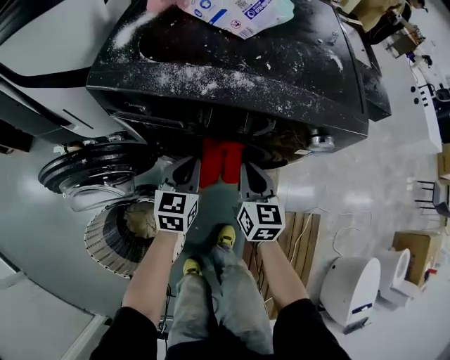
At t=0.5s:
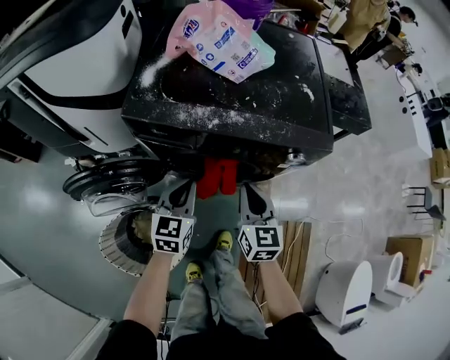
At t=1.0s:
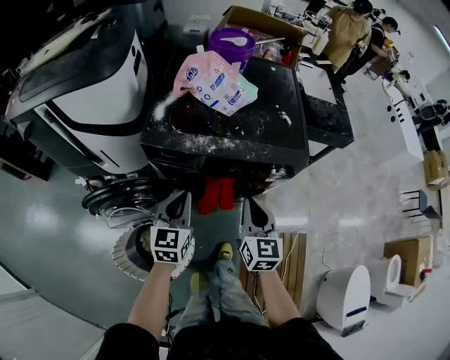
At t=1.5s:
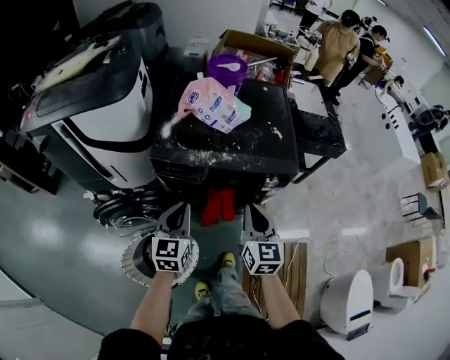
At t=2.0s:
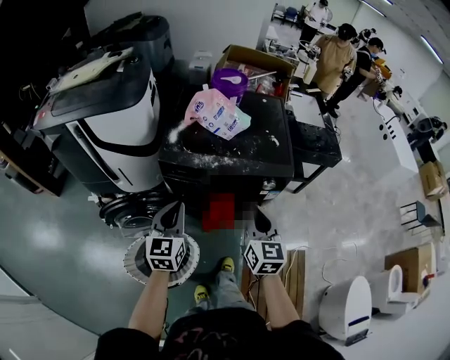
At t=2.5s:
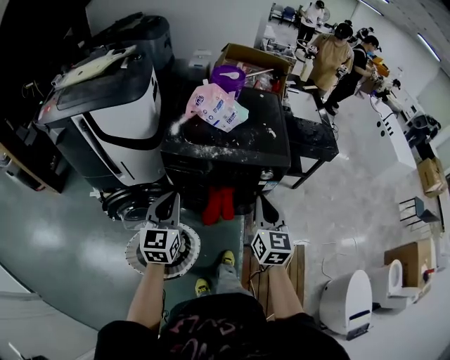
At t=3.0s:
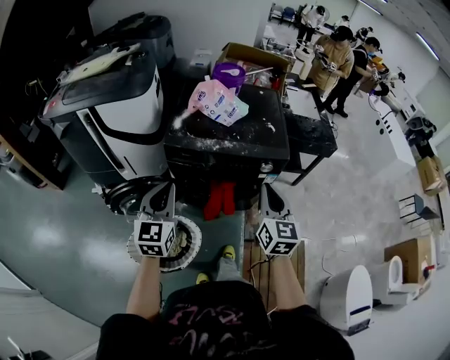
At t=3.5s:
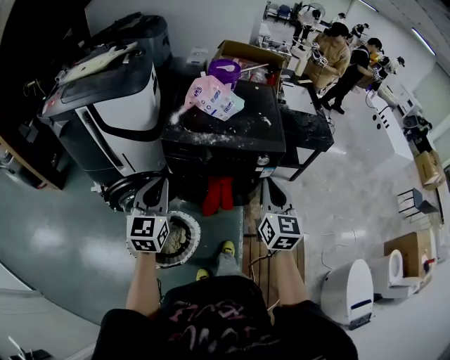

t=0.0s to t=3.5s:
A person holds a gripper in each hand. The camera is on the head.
t=0.0s to t=2.0s: The grippers both shift upward by some 35 cm.
t=2.0s to t=3.5s: Both grippers travel together upward and backward, about 10 cm.

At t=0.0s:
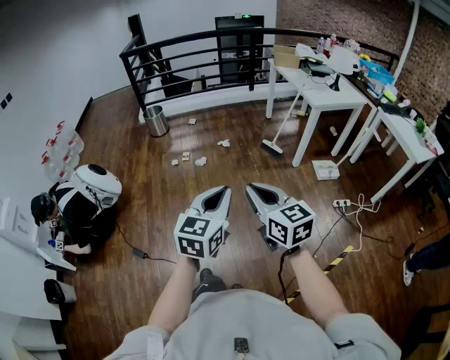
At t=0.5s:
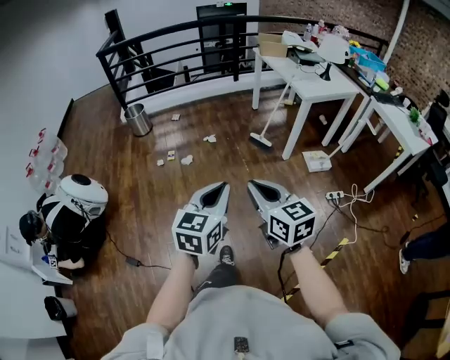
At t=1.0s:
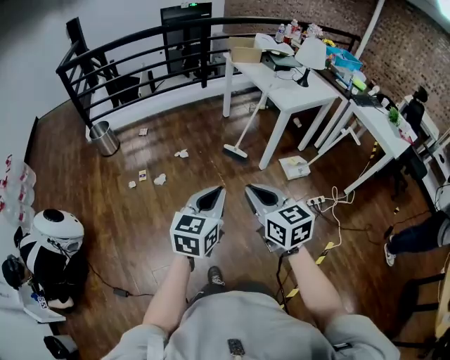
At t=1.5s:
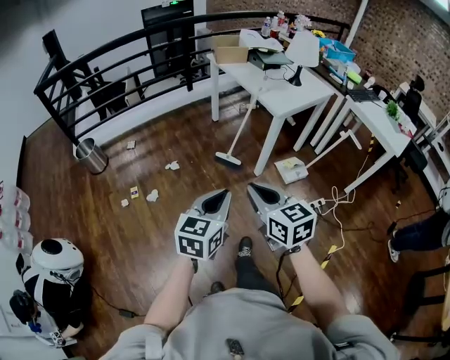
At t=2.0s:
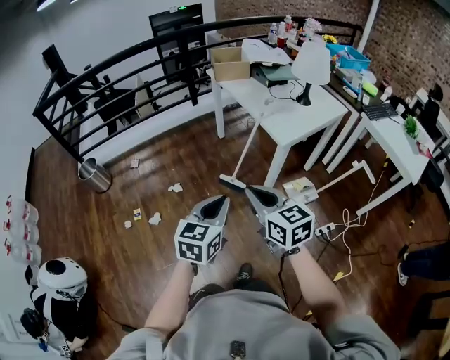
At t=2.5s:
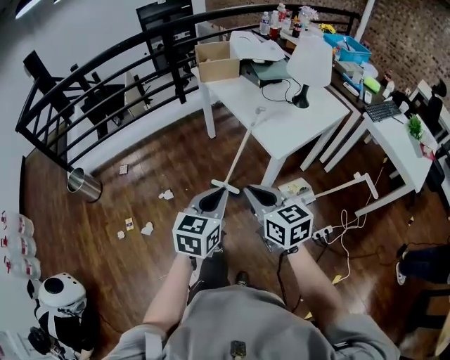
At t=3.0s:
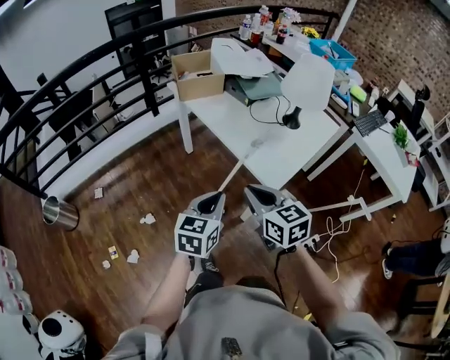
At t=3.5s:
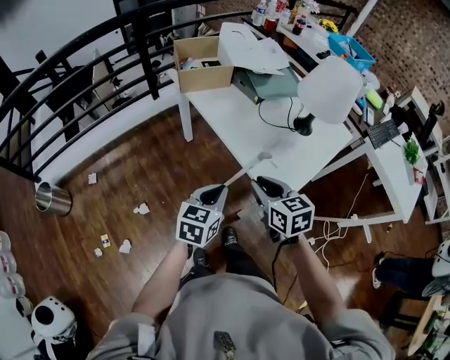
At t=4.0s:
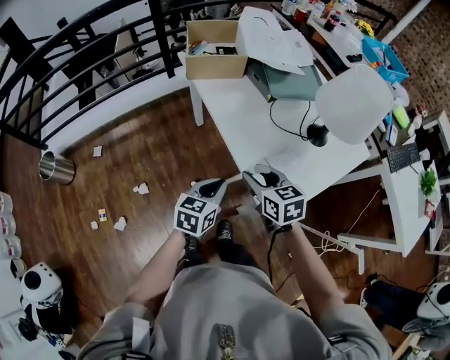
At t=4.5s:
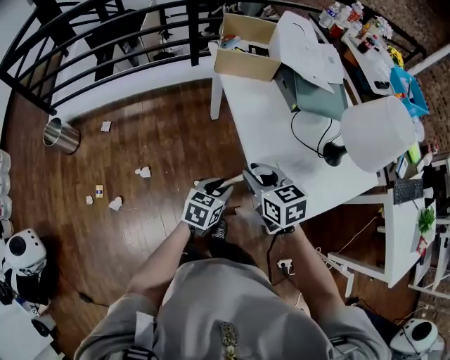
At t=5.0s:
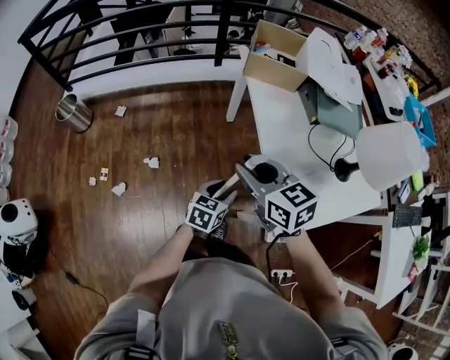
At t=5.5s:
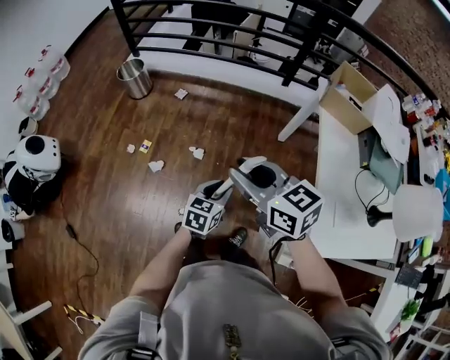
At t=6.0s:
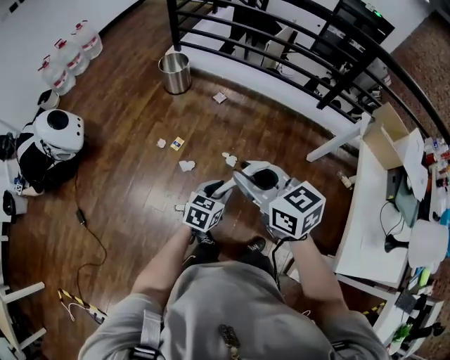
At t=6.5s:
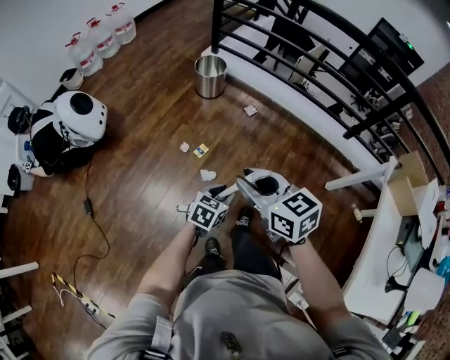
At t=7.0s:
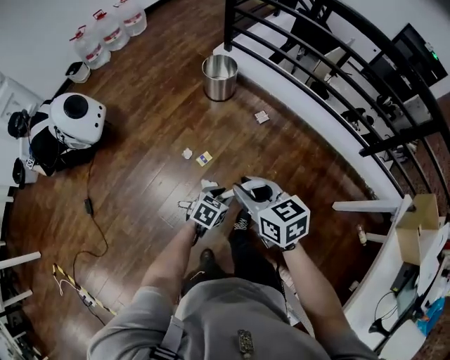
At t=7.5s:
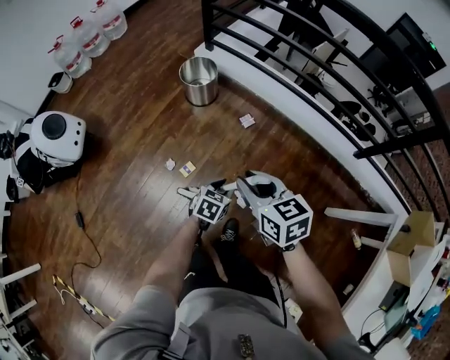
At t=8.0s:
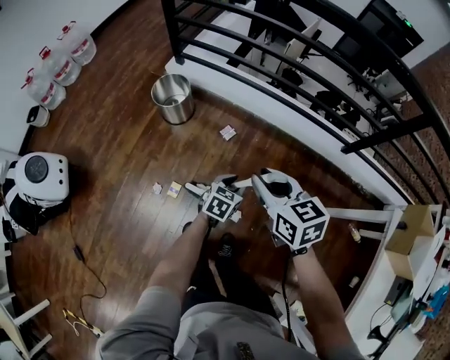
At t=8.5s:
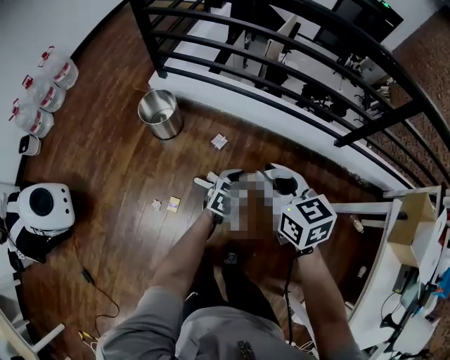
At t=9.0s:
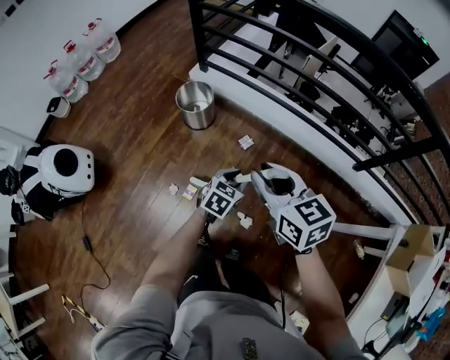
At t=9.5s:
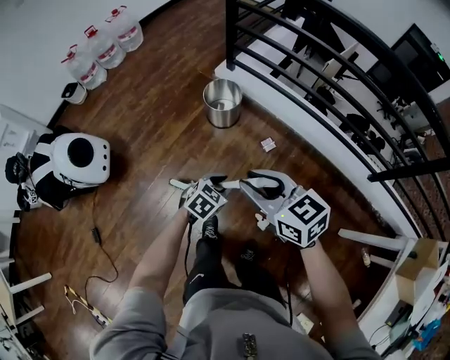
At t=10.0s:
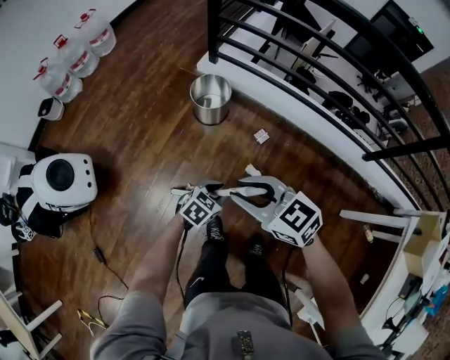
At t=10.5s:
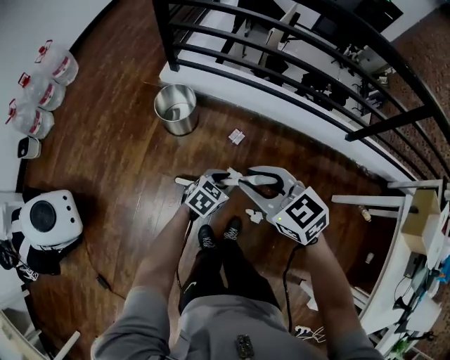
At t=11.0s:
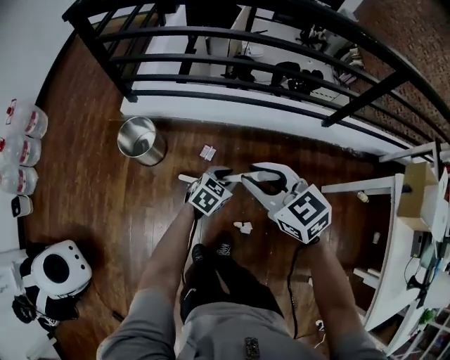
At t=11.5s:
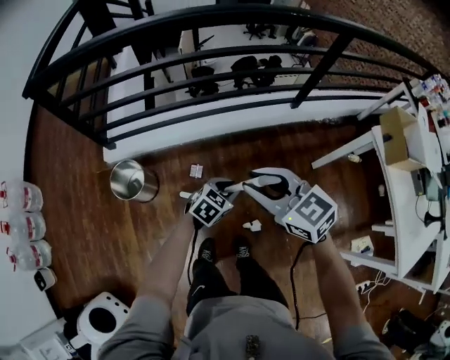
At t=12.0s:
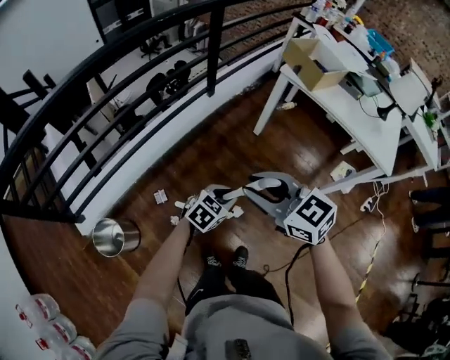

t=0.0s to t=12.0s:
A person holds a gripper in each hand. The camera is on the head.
t=0.0s to t=2.0s: Both grippers are carried forward, roughly 60 cm.
t=2.0s to t=4.0s: The pair of grippers is taken forward, approximately 50 cm. The right gripper opens.
t=4.0s to t=6.0s: The pair of grippers is taken about 50 cm. The right gripper swivels roughly 60 degrees. Meanwhile the left gripper swivels roughly 40 degrees, and opens up.
t=6.0s to t=8.0s: The pair of grippers is taken forward, roughly 50 cm.
t=8.0s to t=10.0s: The right gripper travels upward and back again, some 10 cm each way, and rotates about 40 degrees. The left gripper moves approximately 10 cm upward and comes back.
t=10.0s to t=12.0s: The right gripper moves about 30 cm, and swivels some 80 degrees; the left gripper shifts by about 35 cm, and rotates roughly 80 degrees.

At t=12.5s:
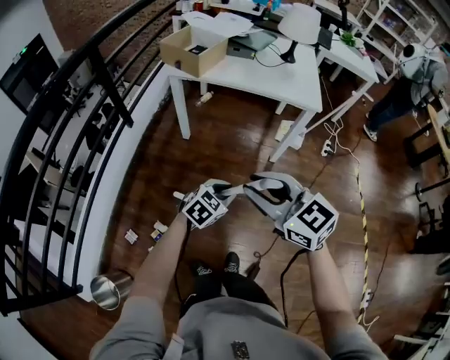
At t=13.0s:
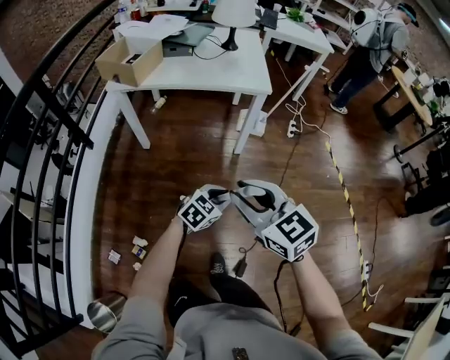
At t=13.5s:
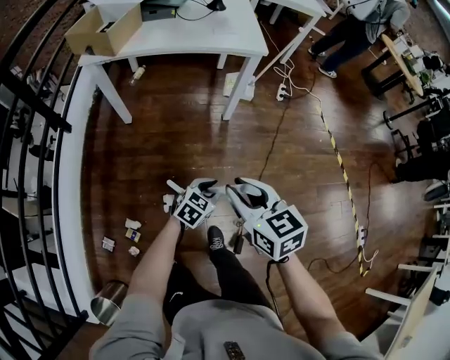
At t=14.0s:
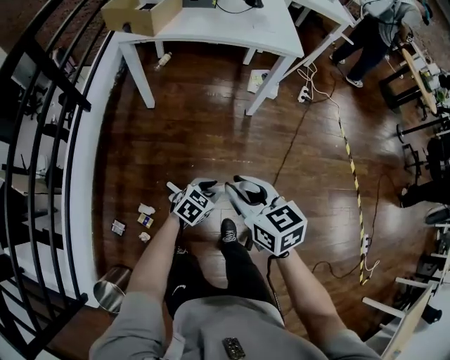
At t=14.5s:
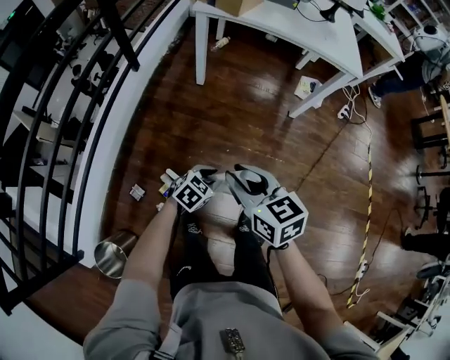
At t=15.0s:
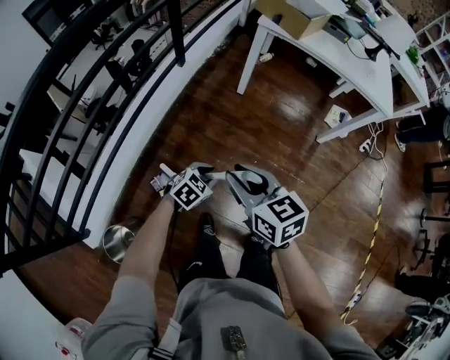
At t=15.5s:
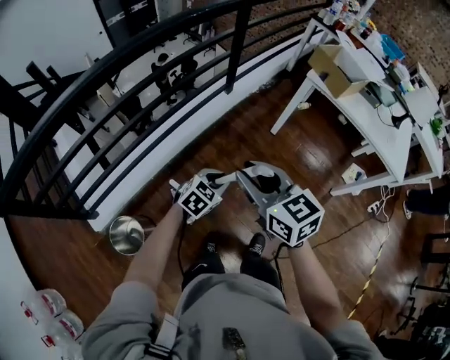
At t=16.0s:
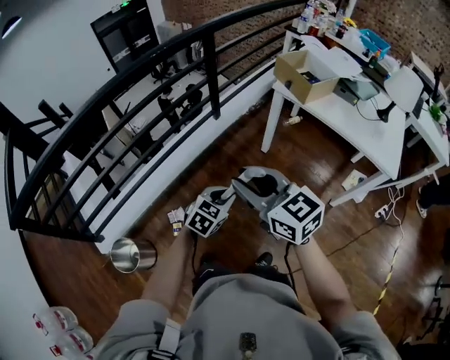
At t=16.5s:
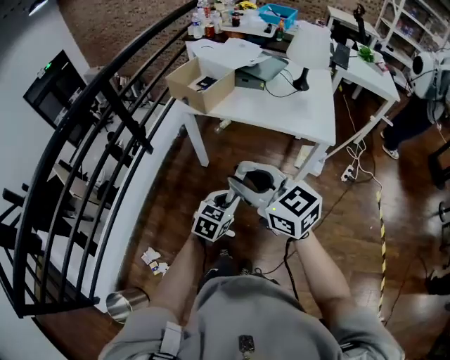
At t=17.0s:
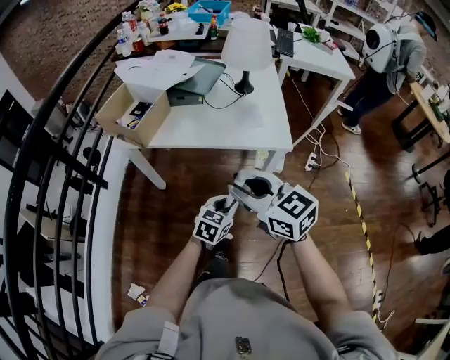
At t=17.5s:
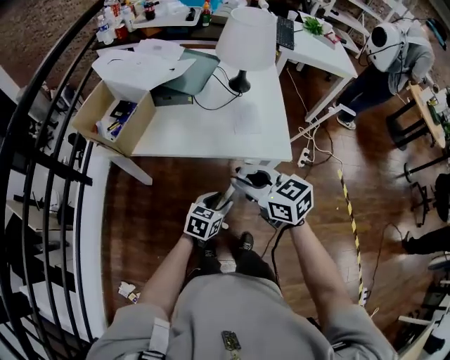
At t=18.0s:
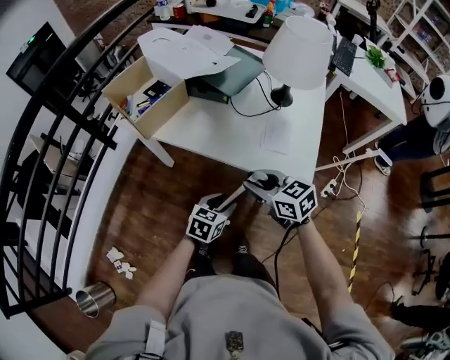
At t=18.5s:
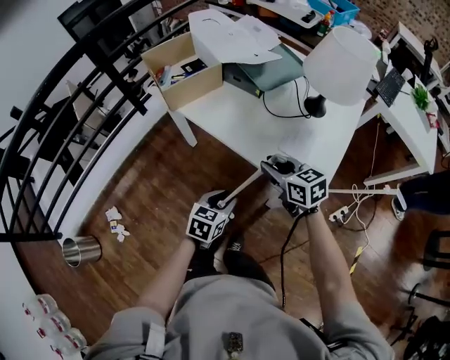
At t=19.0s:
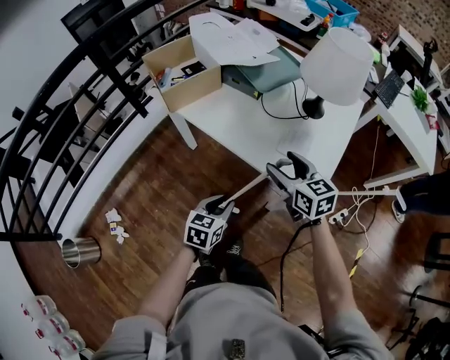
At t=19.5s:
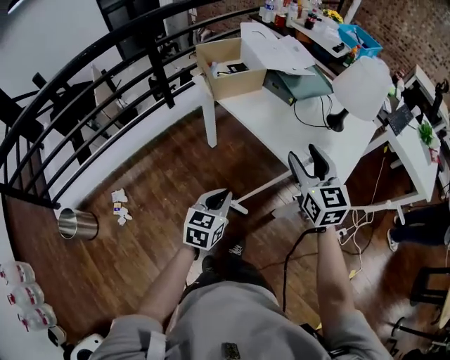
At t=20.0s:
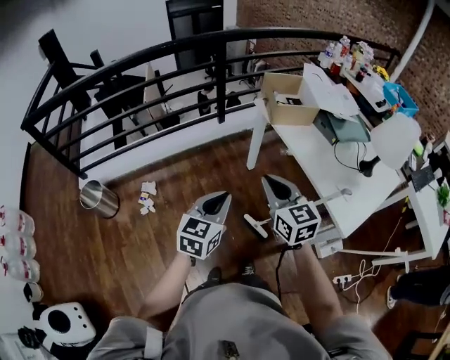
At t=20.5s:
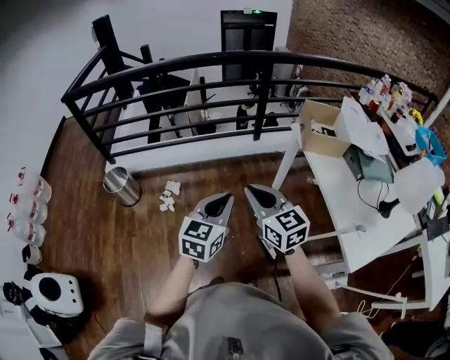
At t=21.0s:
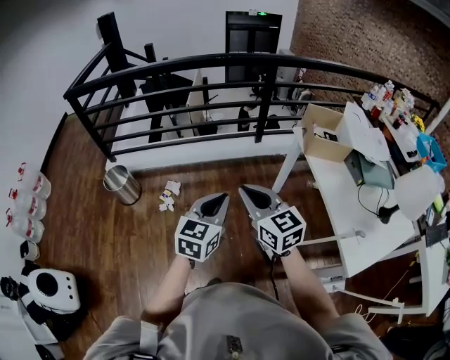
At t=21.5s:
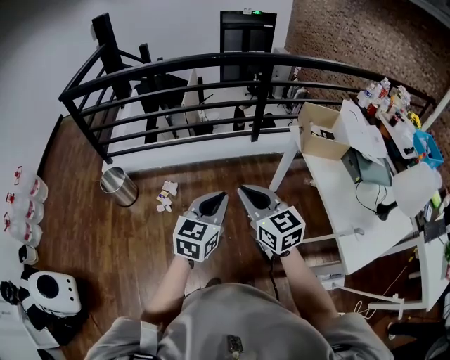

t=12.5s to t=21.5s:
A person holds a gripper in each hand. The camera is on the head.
t=12.5s to t=14.5s: The right gripper shifts roughly 25 cm to the left, downward and backward, and swivels about 30 degrees; the left gripper heads downward, to the left and backward, covering about 25 cm.
t=14.5s to t=17.0s: The pair of grippers is taken approximately 40 cm.
t=17.0s to t=19.5s: The right gripper moves roughly 15 cm downward and comes back, and opens up. The left gripper turns by approximately 50 degrees, and opens, then closes once more.
t=19.5s to t=21.5s: The right gripper changes place by roughly 40 cm, swivels approximately 50 degrees, and closes up. Meanwhile the left gripper moves about 30 cm, and rotates some 40 degrees.

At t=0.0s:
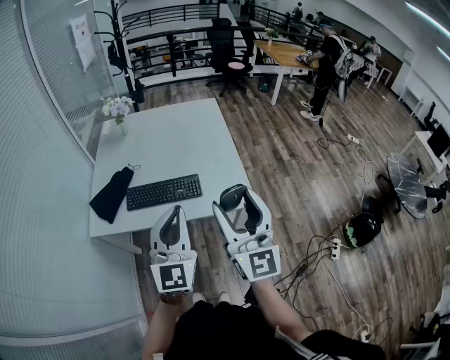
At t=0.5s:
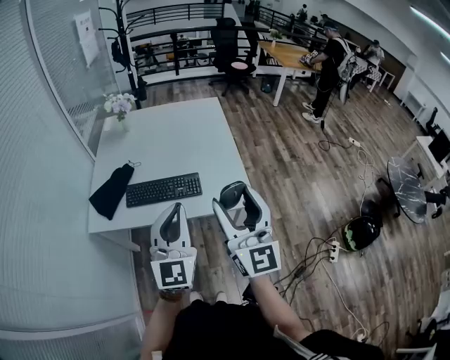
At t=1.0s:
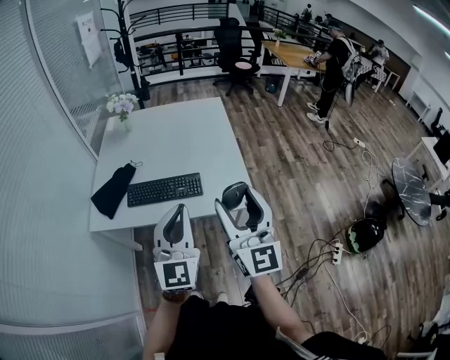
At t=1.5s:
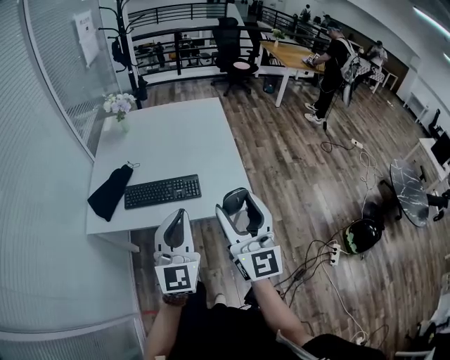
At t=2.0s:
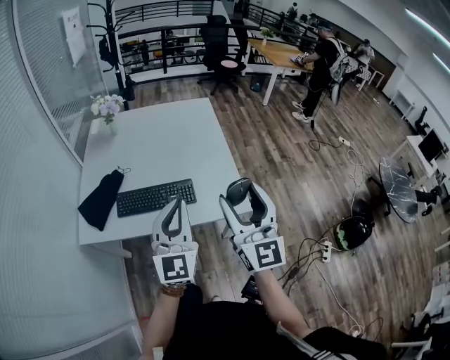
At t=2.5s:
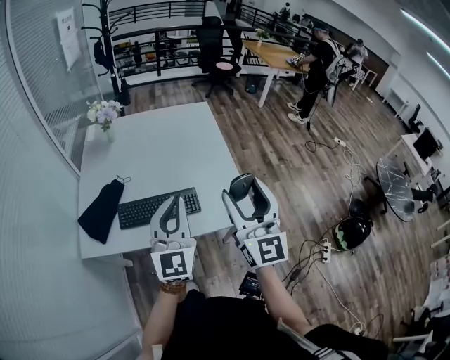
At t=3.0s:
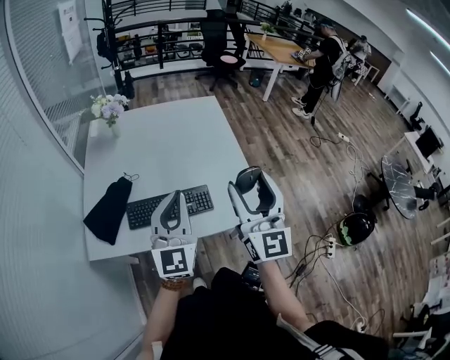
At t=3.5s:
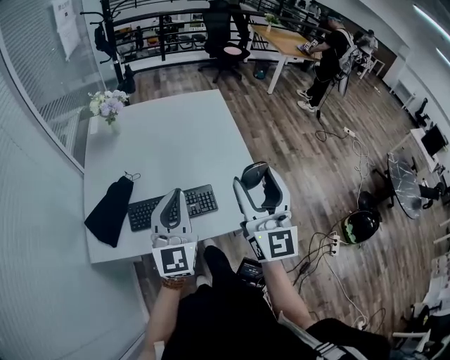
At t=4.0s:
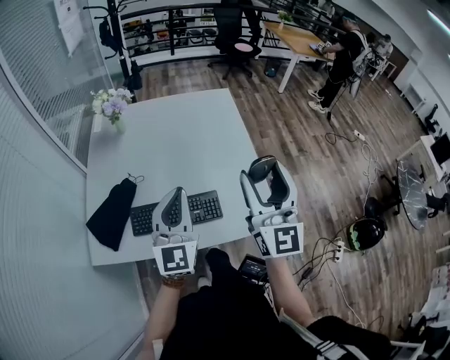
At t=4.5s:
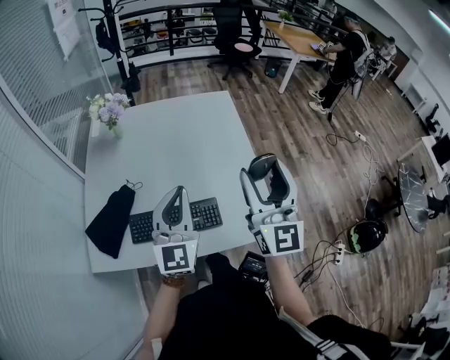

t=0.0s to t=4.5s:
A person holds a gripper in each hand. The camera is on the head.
t=0.0s to t=2.0s: Both grippers move forward, approximately 5 cm.
t=2.0s to t=4.5s: Both grippers move forward, some 25 cm.
